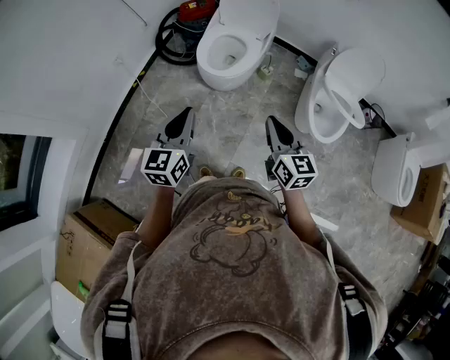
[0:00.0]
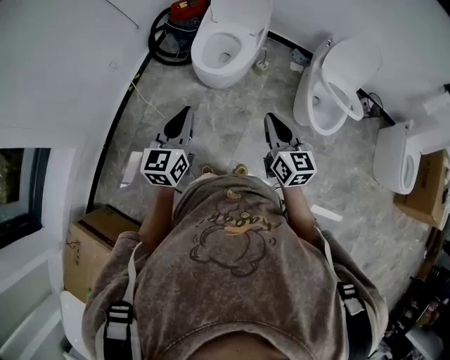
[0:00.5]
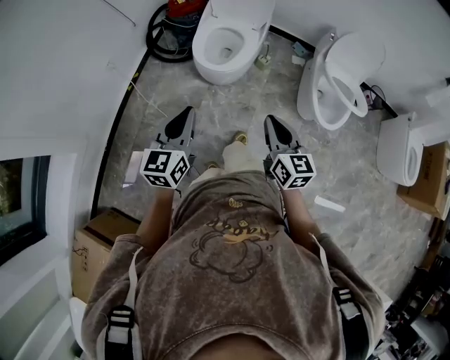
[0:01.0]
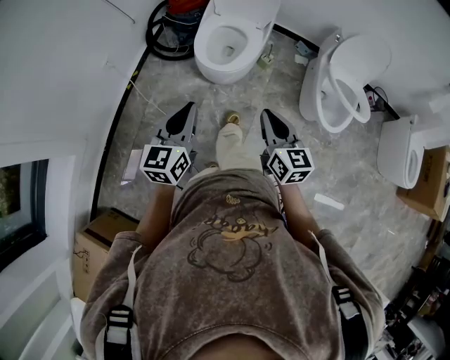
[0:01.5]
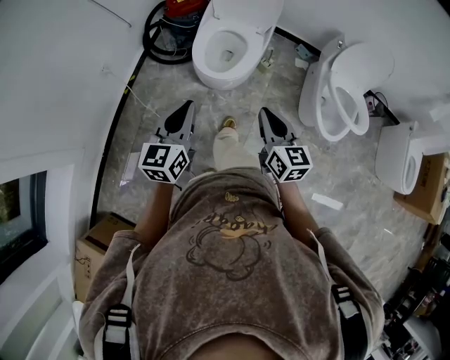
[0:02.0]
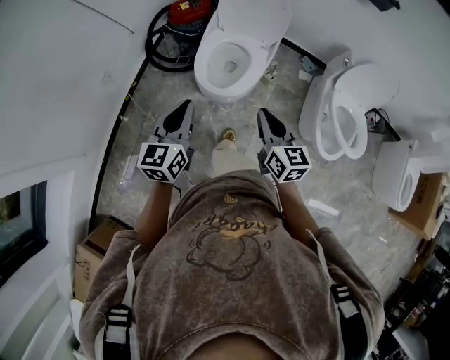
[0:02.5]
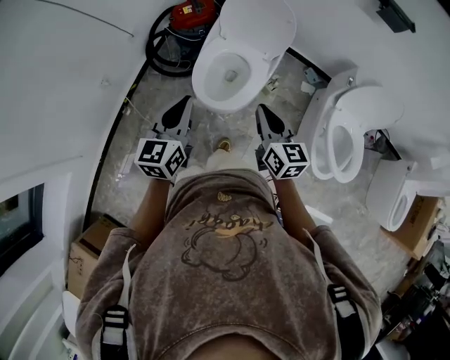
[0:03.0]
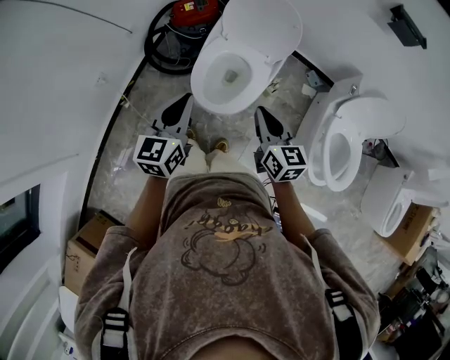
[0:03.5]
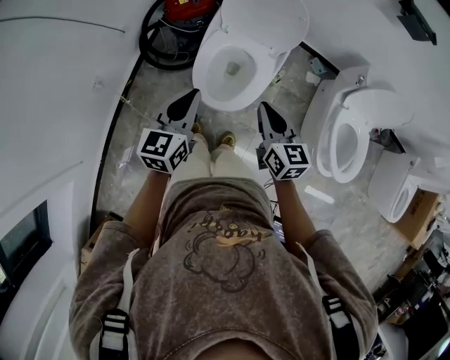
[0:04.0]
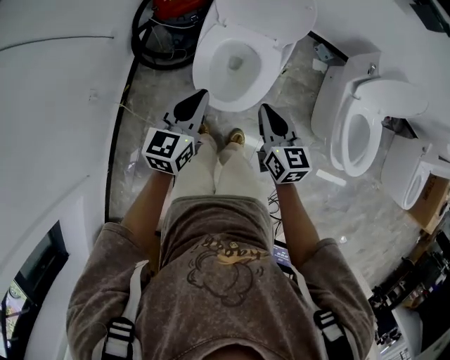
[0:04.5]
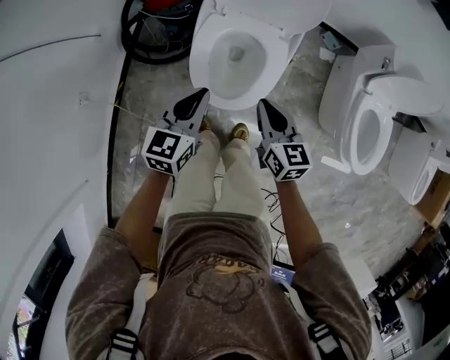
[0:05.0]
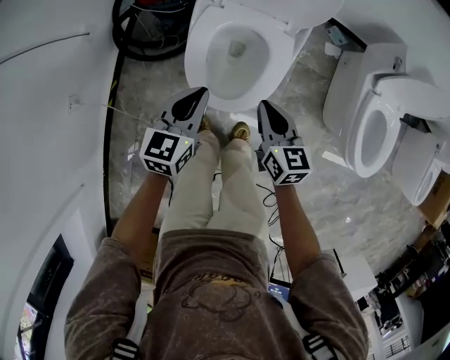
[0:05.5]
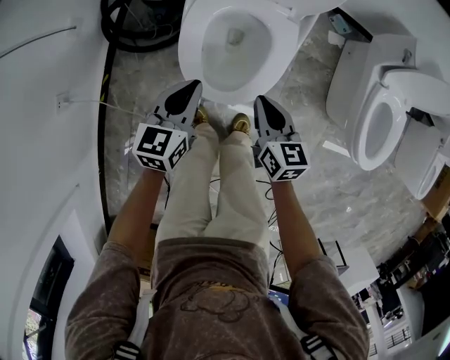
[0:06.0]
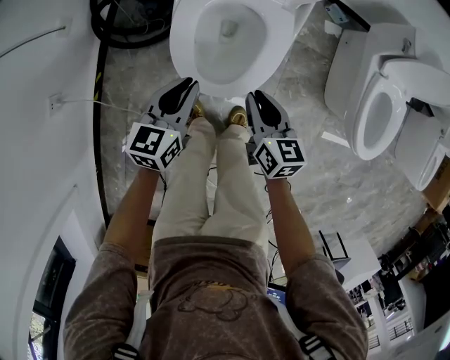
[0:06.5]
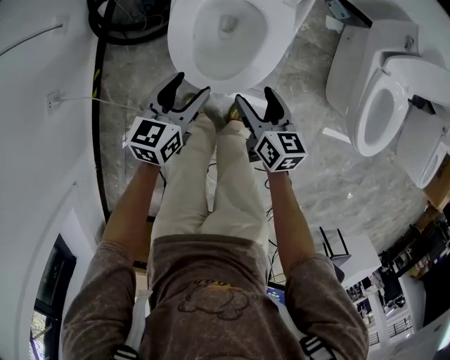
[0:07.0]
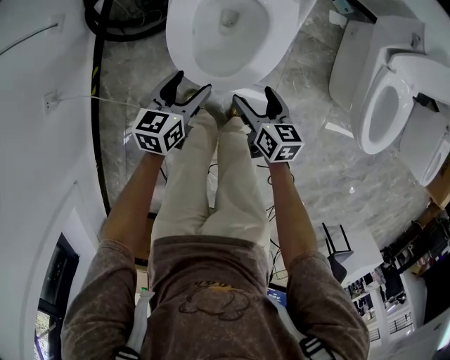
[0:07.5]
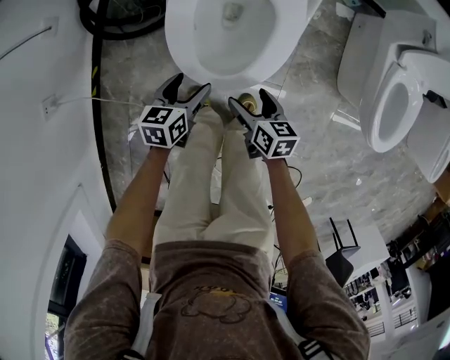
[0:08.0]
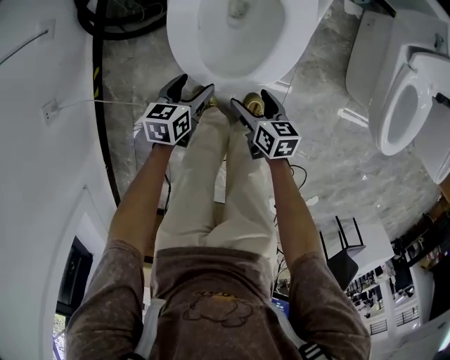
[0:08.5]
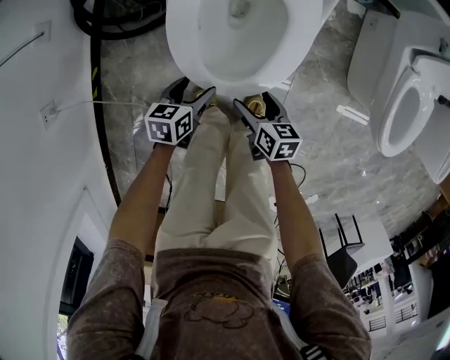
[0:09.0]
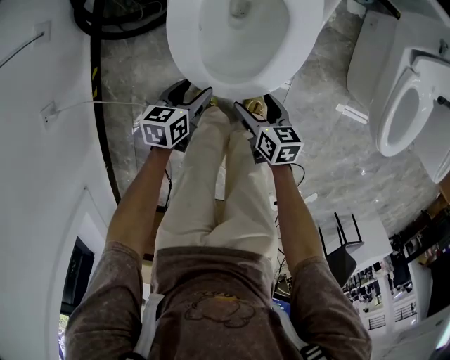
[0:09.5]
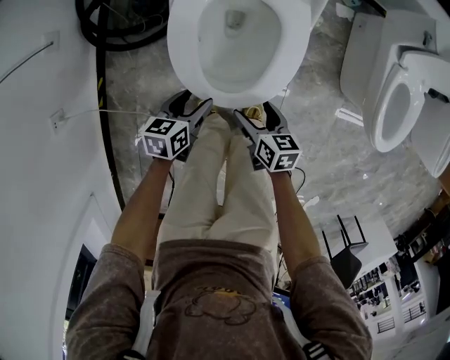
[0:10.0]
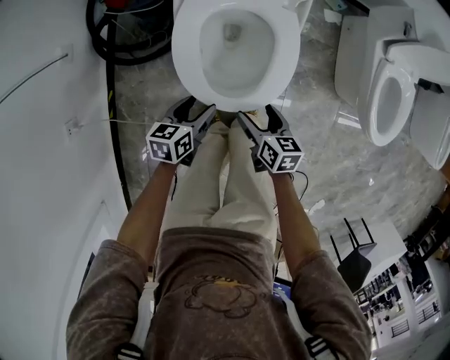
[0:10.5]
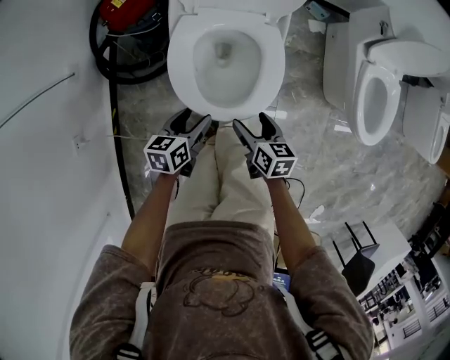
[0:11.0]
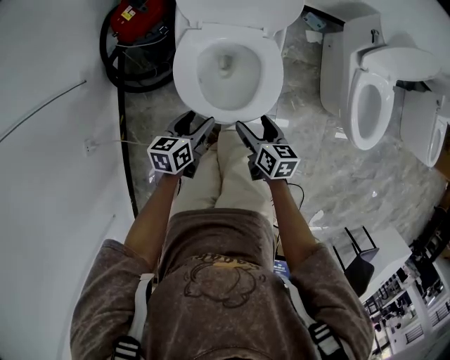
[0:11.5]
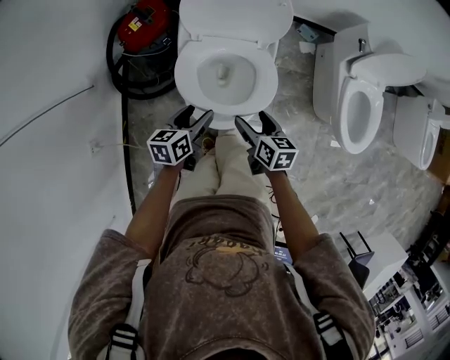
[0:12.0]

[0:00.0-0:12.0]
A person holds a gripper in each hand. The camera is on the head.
0:00.0 to 0:02.0: The right gripper moves forward, to the left and downward, about 15 cm. The left gripper moves forward, some 15 cm.
0:02.0 to 0:04.0: Both grippers move forward, approximately 30 cm.
0:04.0 to 0:06.0: The grippers both shift downward by some 25 cm.
0:06.0 to 0:08.0: Both grippers travel together downward, roughly 15 cm. The right gripper swivels roughly 20 degrees, and opens up. The left gripper turns by approximately 20 degrees, and opens.
0:10.0 to 0:12.0: The grippers both shift upward and forward by some 25 cm.

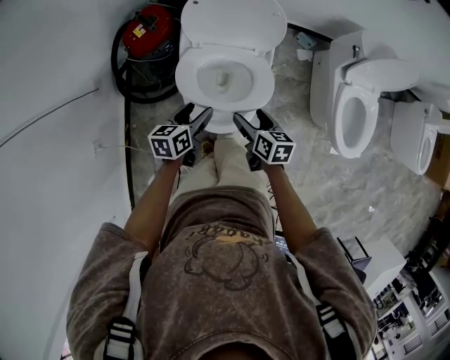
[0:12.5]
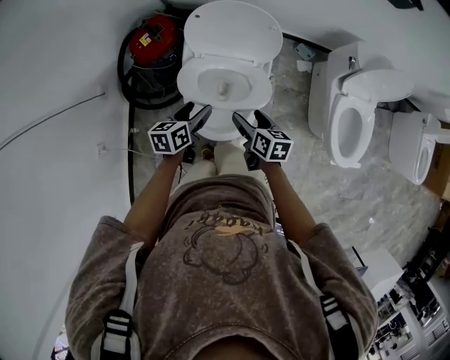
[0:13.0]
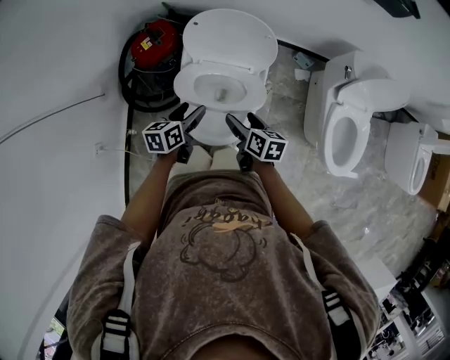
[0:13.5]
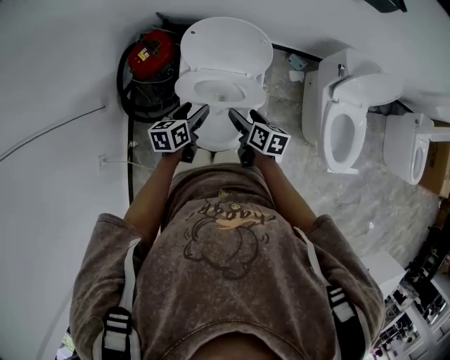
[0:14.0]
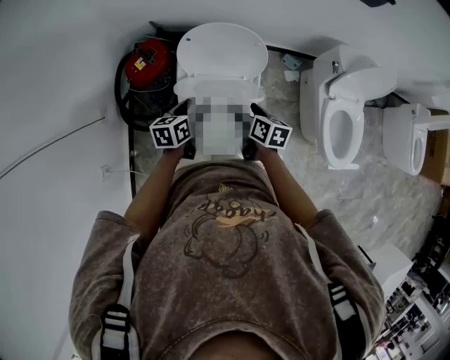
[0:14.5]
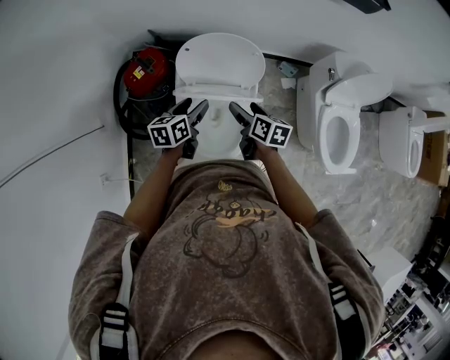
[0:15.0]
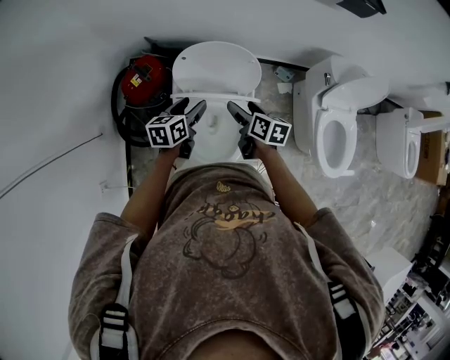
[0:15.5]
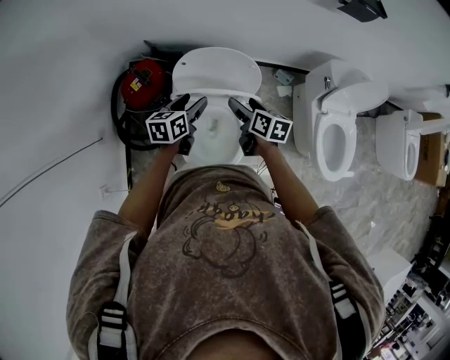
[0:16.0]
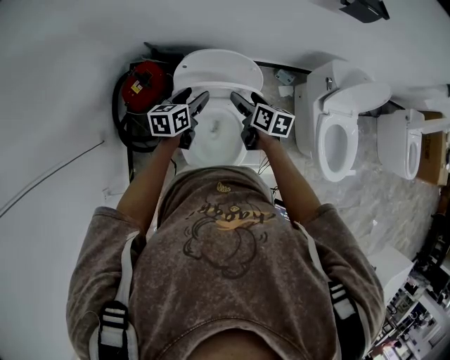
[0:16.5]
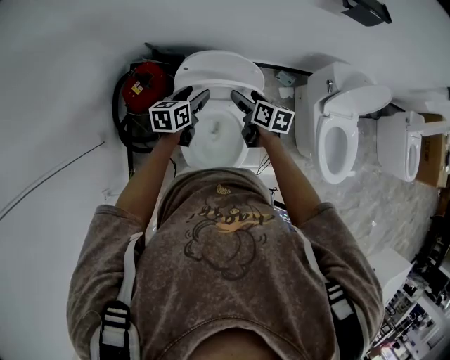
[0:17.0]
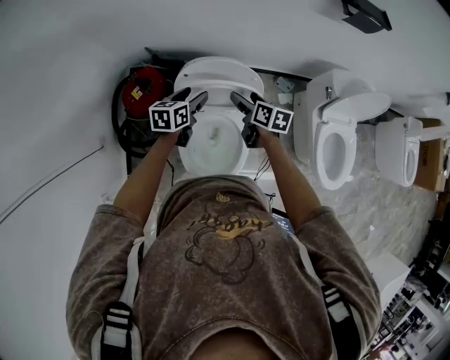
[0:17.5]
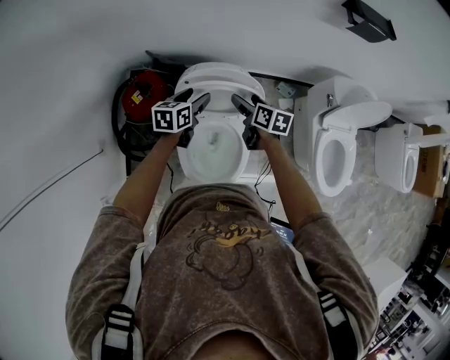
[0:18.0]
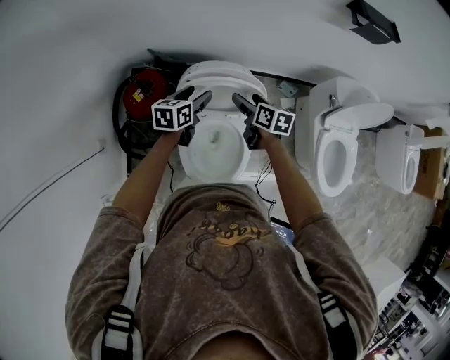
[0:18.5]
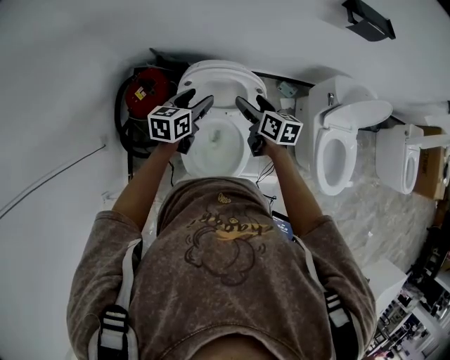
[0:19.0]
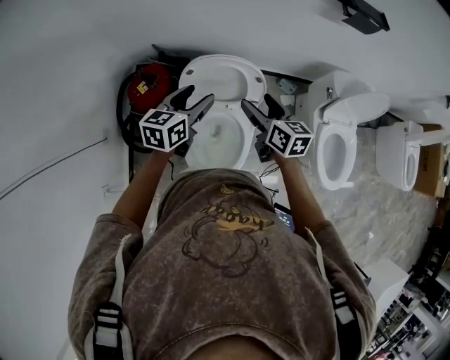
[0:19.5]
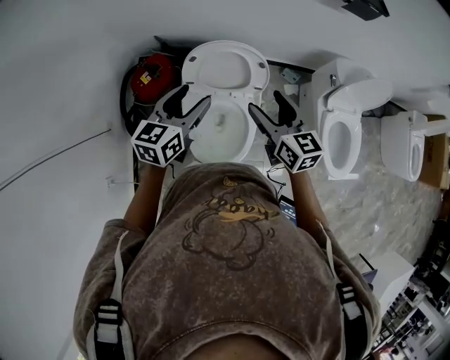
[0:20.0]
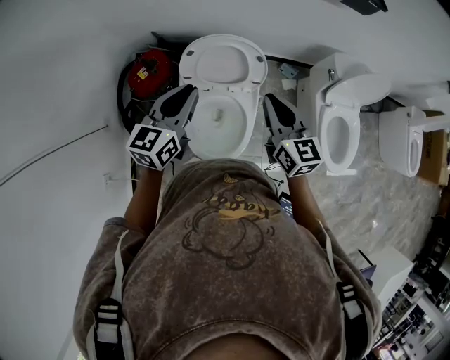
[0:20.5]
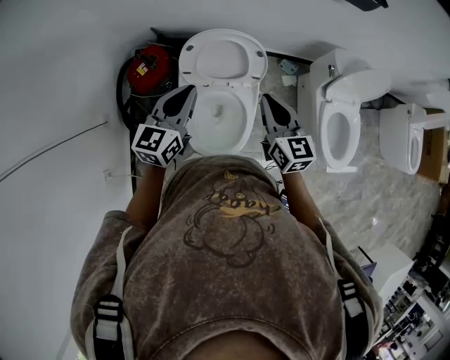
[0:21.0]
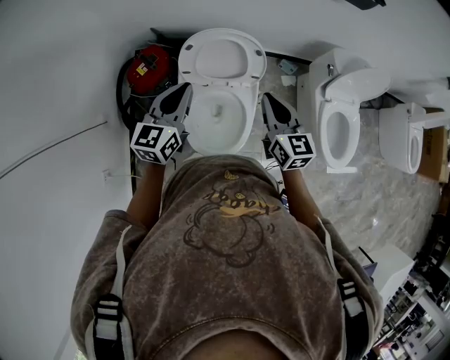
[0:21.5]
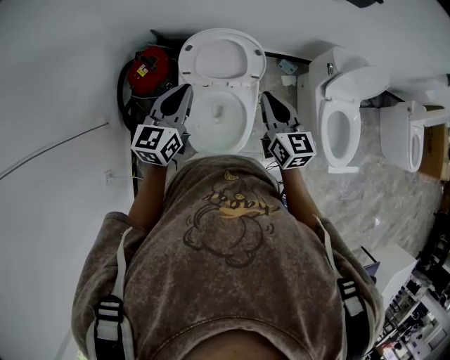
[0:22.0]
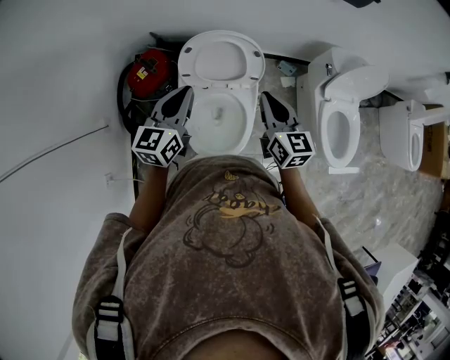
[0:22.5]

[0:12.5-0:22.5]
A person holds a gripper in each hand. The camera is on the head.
0:12.5 to 0:14.5: The two grippers go about 10 cm forward and upward.
0:14.5 to 0:16.5: Both grippers move forward, approximately 15 cm.
0:16.5 to 0:18.5: Both grippers move forward, about 5 cm.
0:18.5 to 0:20.5: The grippers both shift upward and backward by roughly 25 cm. The right gripper changes its angle by some 40 degrees, and closes, while the left gripper rotates roughly 30 degrees, and closes.
0:20.5 to 0:22.5: The grippers move only a little.

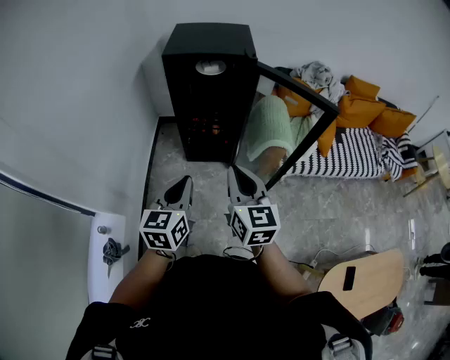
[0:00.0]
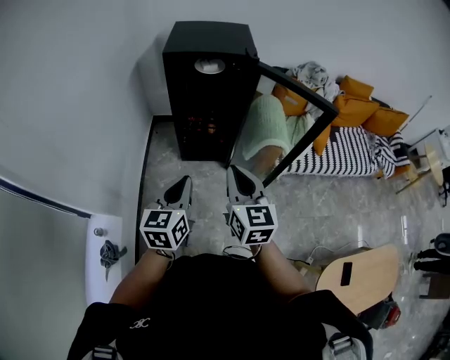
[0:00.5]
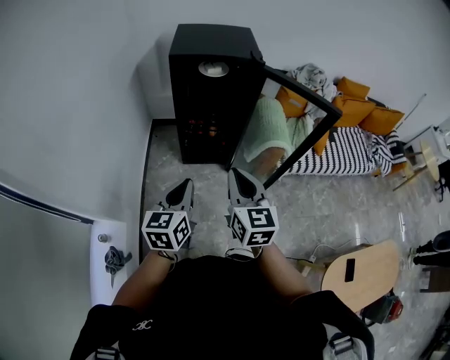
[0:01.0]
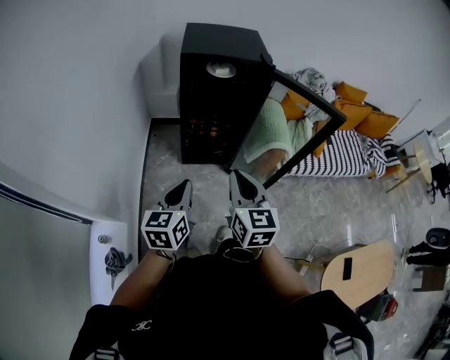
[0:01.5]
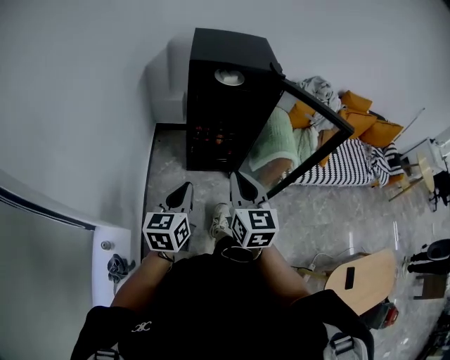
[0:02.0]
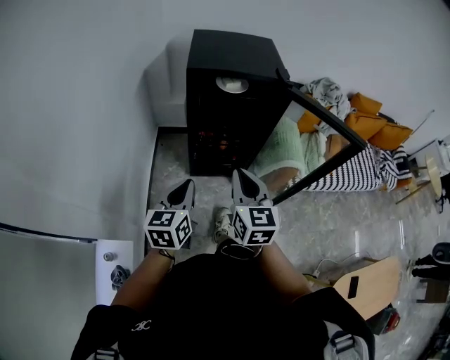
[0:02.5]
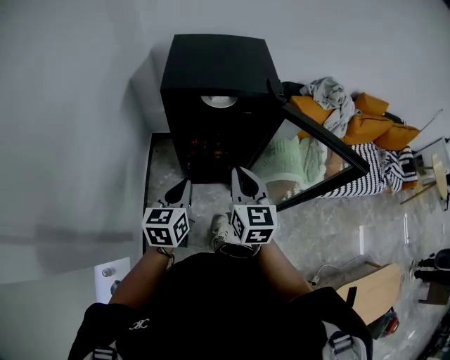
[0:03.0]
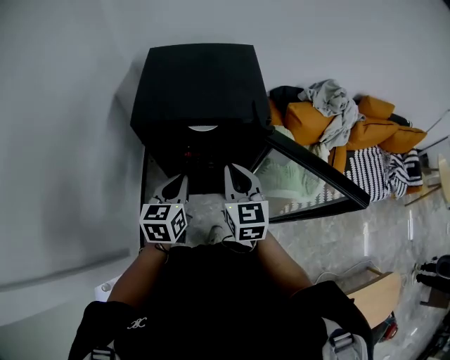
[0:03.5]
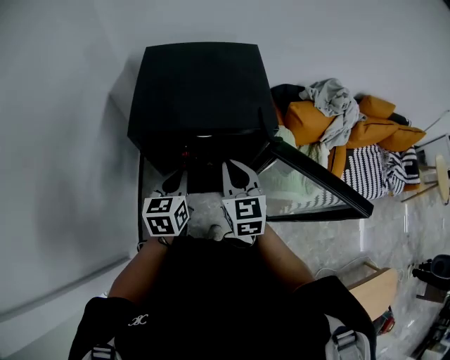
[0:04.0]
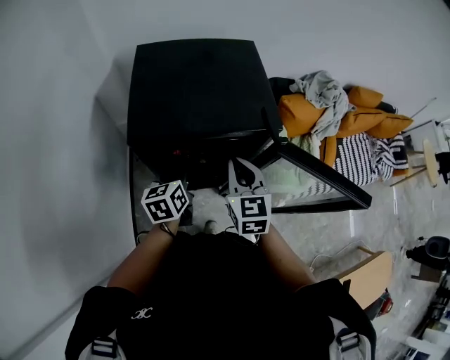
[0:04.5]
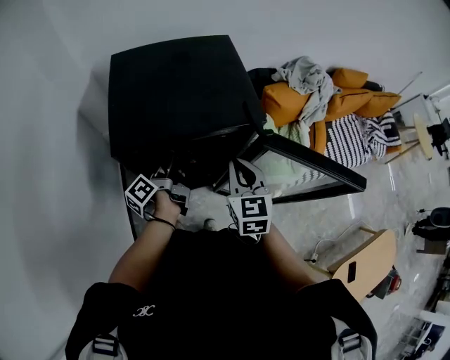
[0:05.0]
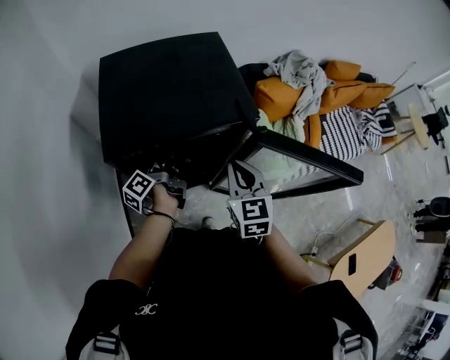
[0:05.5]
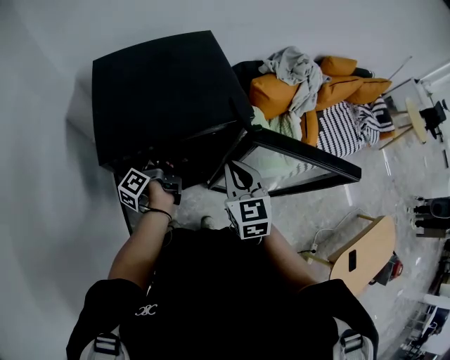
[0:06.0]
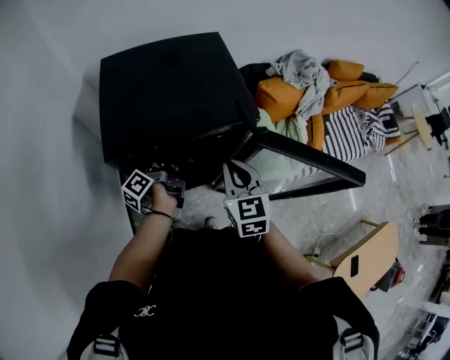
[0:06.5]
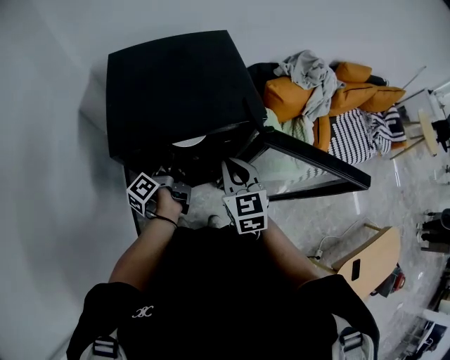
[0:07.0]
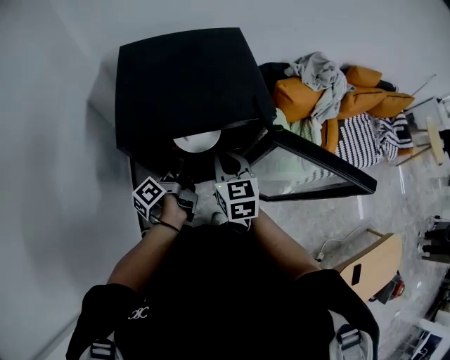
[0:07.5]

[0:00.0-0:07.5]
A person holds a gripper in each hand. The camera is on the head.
0:00.0 to 0:02.0: Both grippers travel together to the left, approximately 15 cm.
0:02.0 to 0:04.0: The two grippers travel together, forward, approximately 40 cm.
0:04.0 to 0:05.5: The left gripper goes about 15 cm forward and downward, and rolls counterclockwise, seen from behind, by approximately 70 degrees, while the right gripper moves to the right, some 5 cm.
0:05.5 to 0:07.5: The right gripper moves to the left, some 5 cm. The left gripper heads backward, covering approximately 5 cm.
